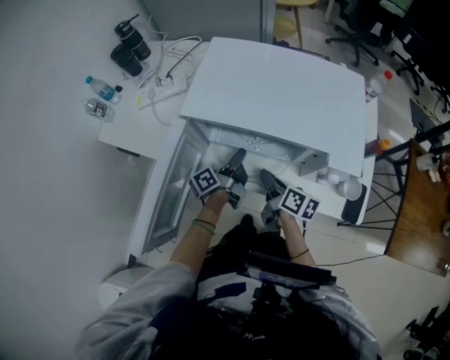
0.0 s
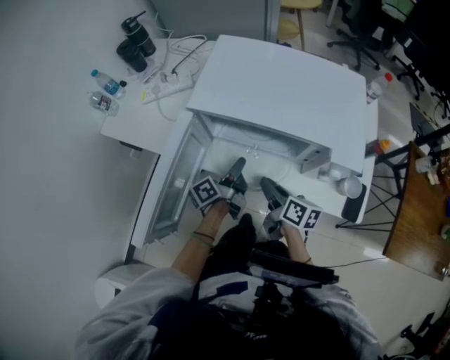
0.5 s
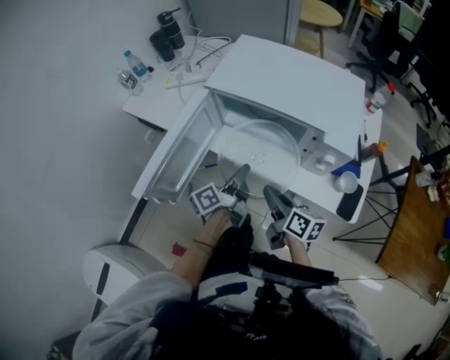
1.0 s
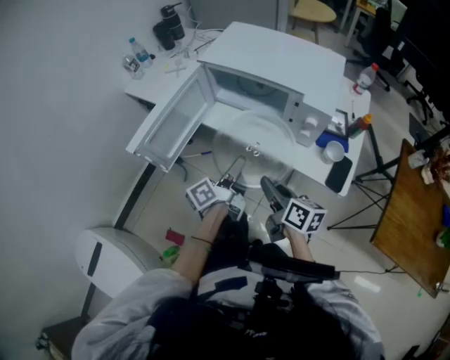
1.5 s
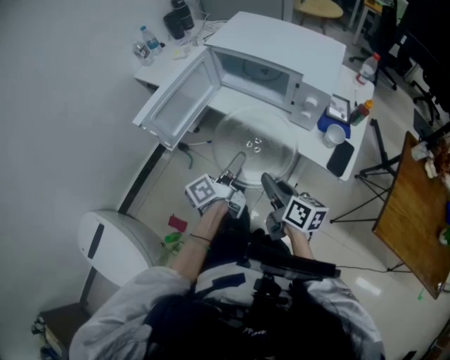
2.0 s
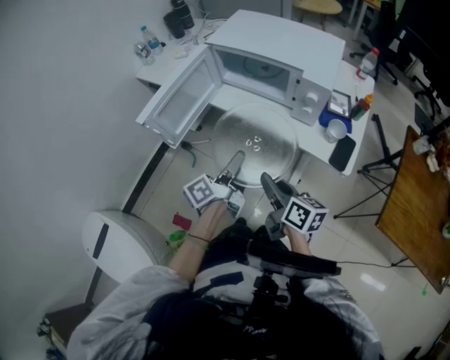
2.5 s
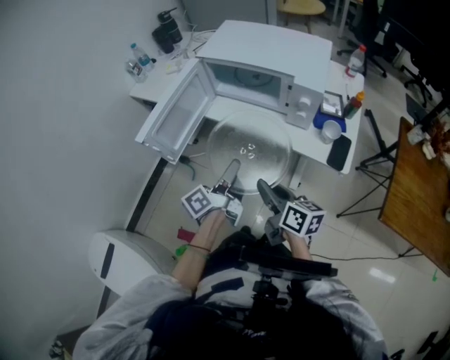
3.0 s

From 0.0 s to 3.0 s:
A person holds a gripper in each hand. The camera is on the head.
From 0.0 s to 1.5 s: Both grippers travel together backward, roughly 25 cm. The right gripper swivels about 20 degrees.
From 1.5 s to 3.0 s: Both grippers move backward, approximately 10 cm.

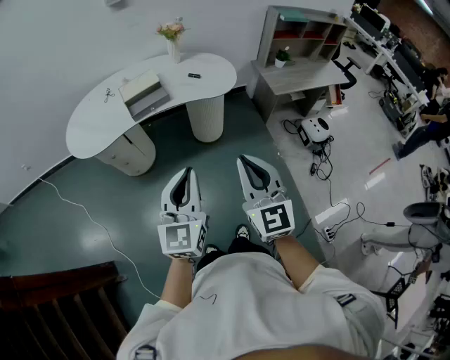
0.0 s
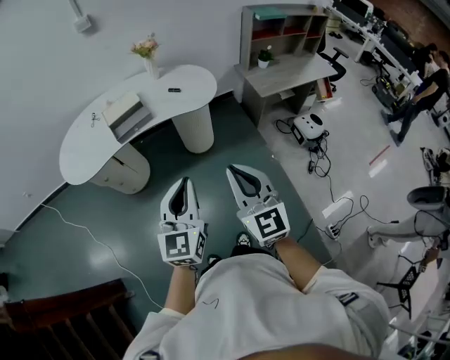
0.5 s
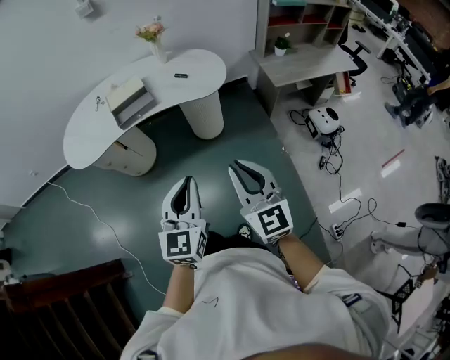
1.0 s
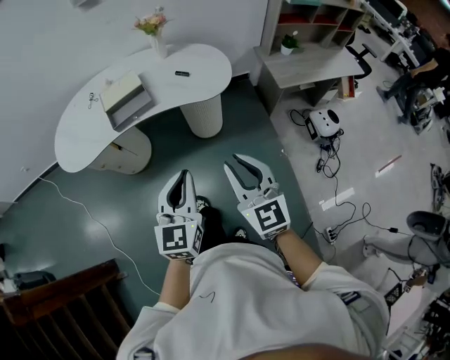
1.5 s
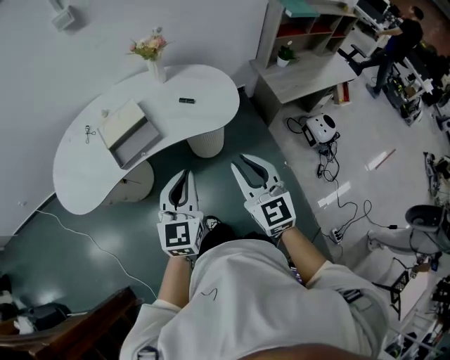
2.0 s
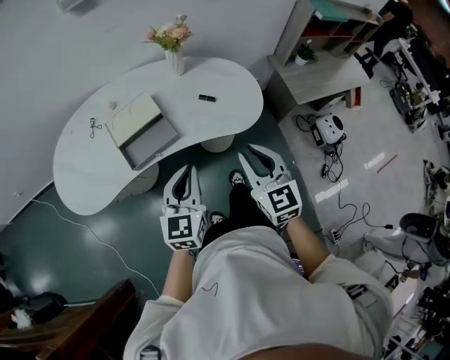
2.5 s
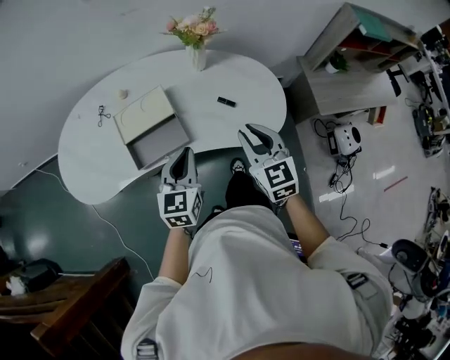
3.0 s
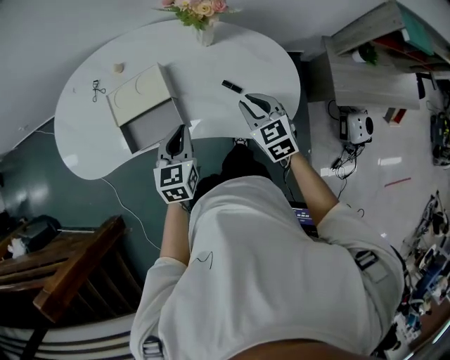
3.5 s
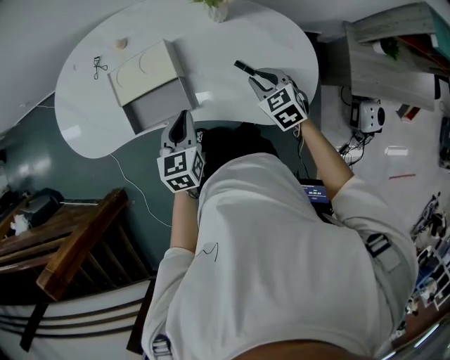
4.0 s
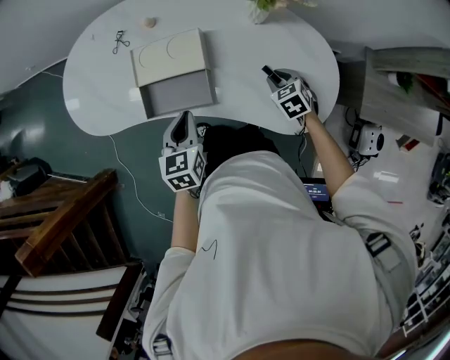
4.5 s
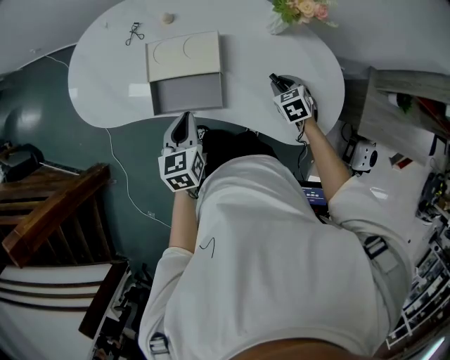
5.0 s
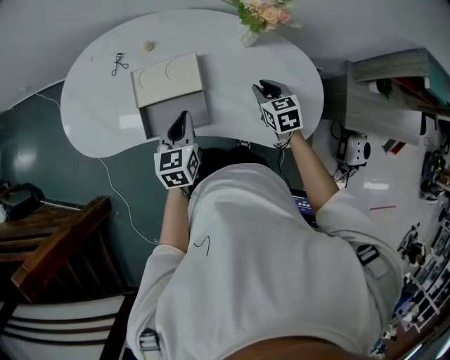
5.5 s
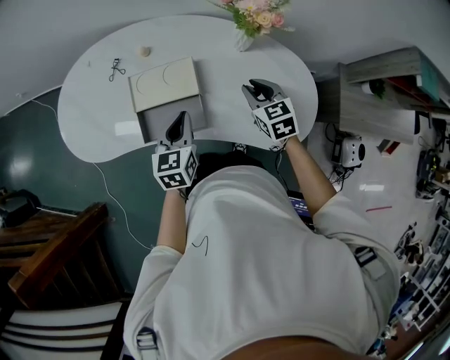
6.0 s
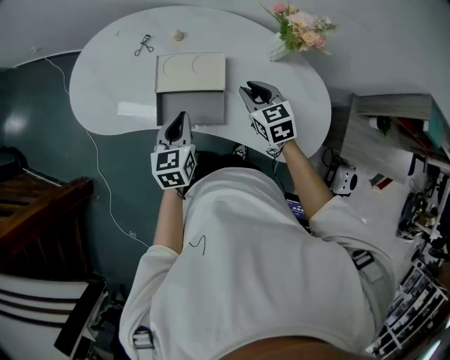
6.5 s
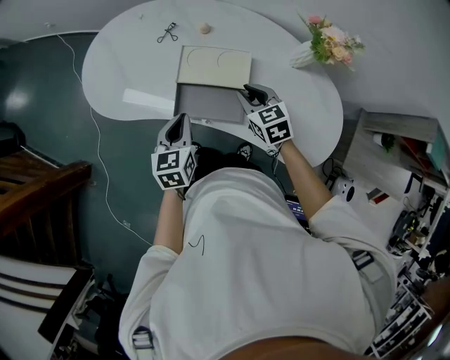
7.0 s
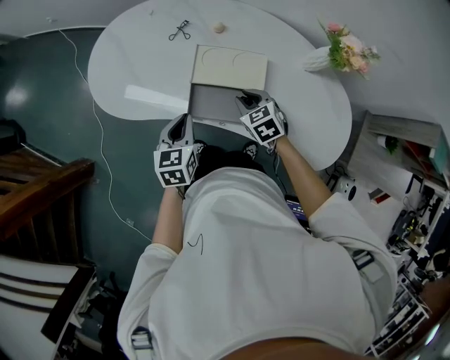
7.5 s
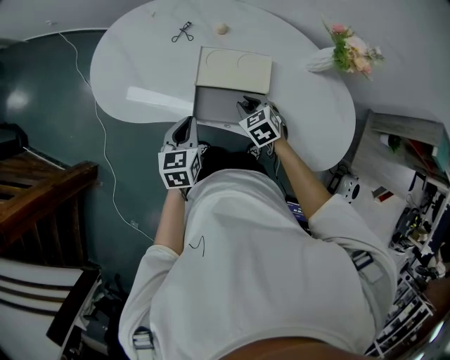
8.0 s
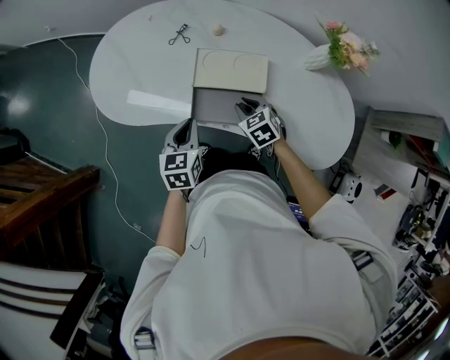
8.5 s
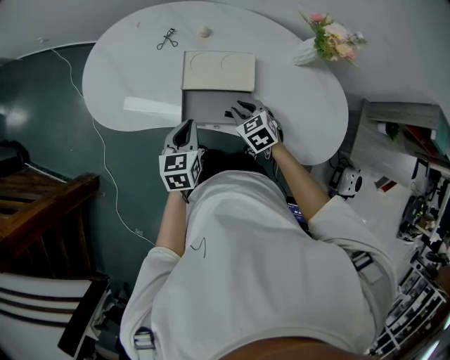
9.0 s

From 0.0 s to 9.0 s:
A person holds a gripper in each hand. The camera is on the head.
From 0.0 s to 2.0 s: Both grippers move forward, about 30 cm.
From 2.0 s to 4.5 s: The left gripper moves roughly 35 cm, and turns by approximately 50 degrees. Meanwhile the right gripper ends up roughly 60 cm from where it was, and angles its fingers downward, by about 50 degrees.
From 4.5 s to 7.0 s: The left gripper travels to the left by about 15 cm. Meanwhile the right gripper moves to the left and upward, approximately 25 cm, and rotates approximately 20 degrees.
From 7.0 s to 9.0 s: The right gripper shifts approximately 5 cm downward.

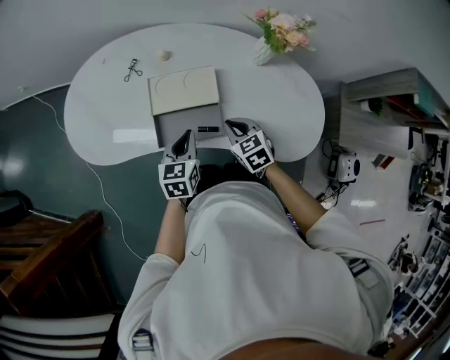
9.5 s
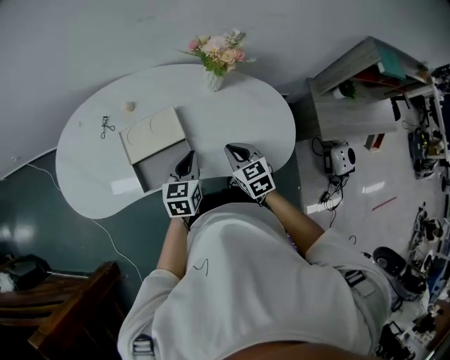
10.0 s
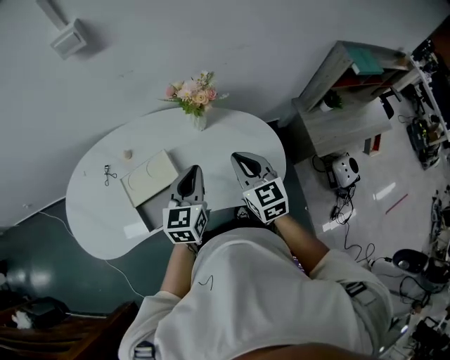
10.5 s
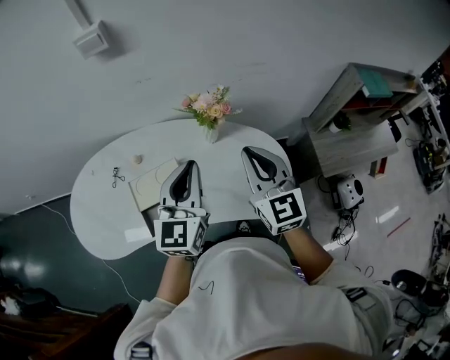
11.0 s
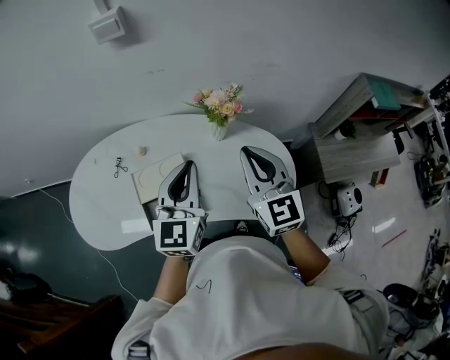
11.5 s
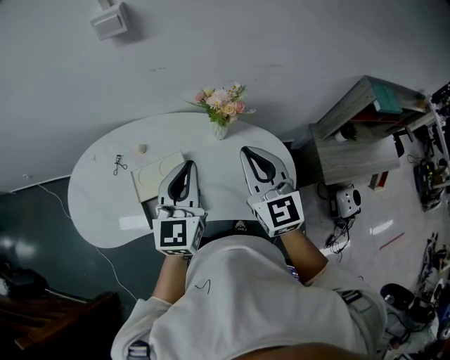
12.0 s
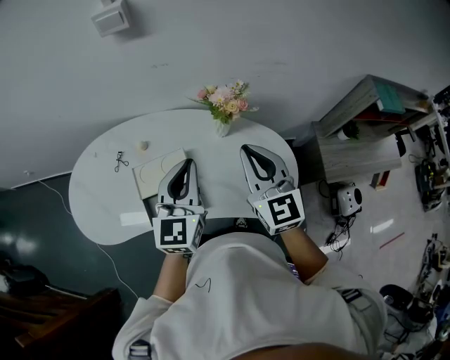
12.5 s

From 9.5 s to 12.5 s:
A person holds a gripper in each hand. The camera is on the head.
From 9.5 s to 11.0 s: Both grippers travel together upward and to the right, some 35 cm. The right gripper tilts its fingers about 40 degrees upward; the left gripper angles its fingers upward, by some 30 degrees.
From 11.0 s to 12.5 s: The grippers move only a little.

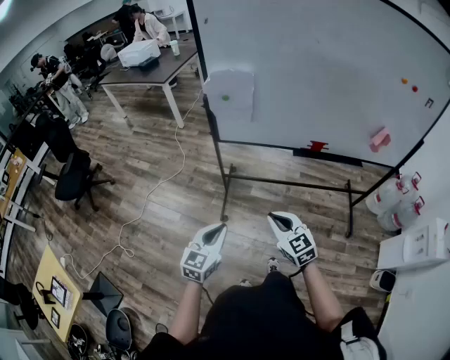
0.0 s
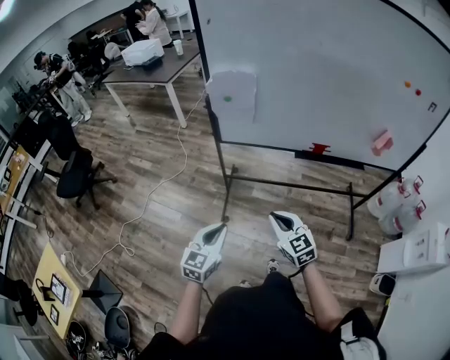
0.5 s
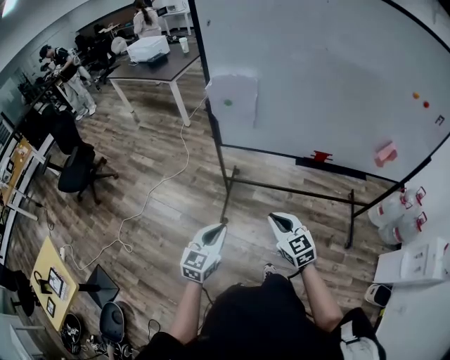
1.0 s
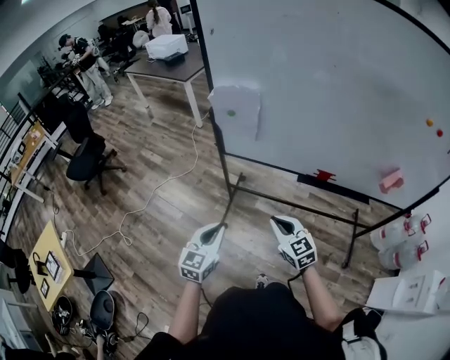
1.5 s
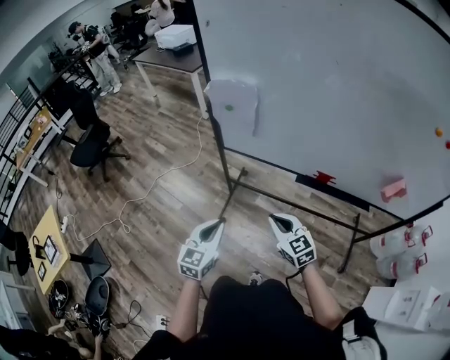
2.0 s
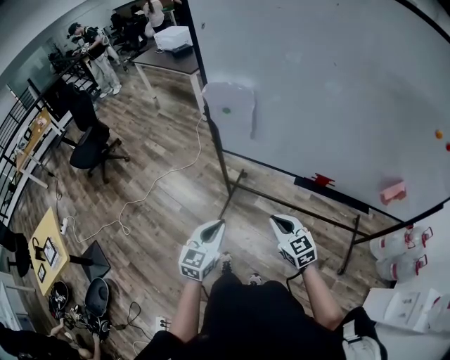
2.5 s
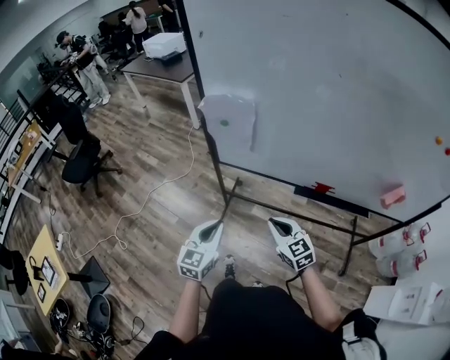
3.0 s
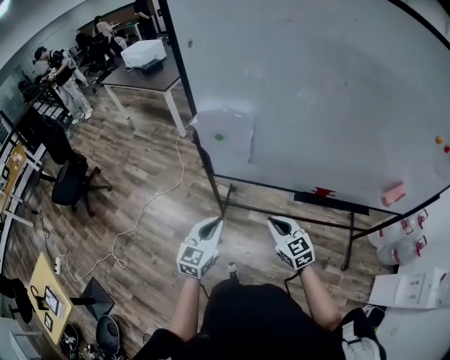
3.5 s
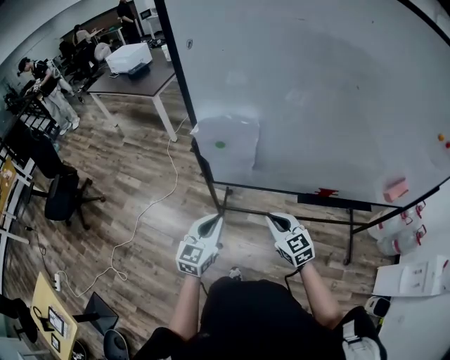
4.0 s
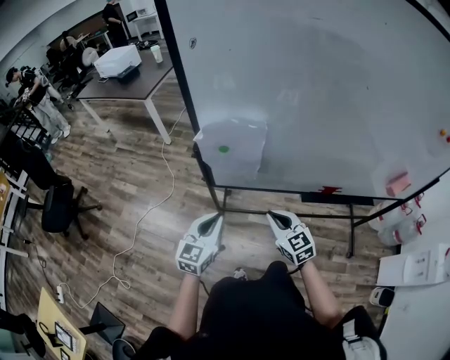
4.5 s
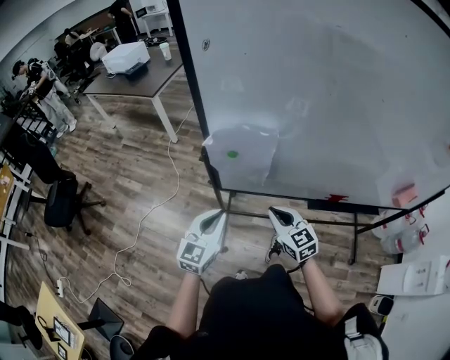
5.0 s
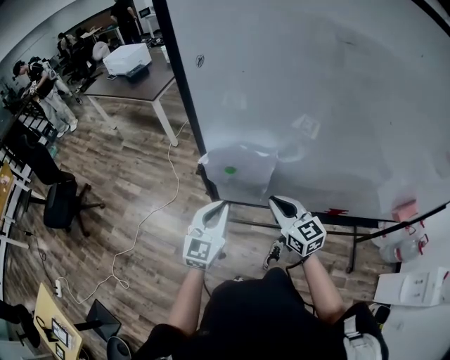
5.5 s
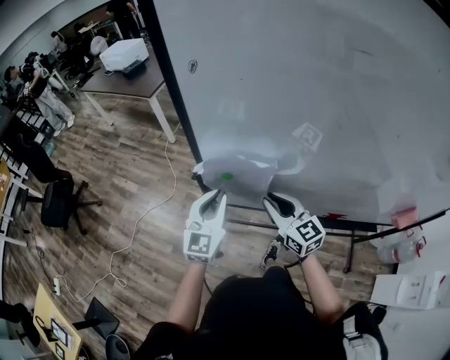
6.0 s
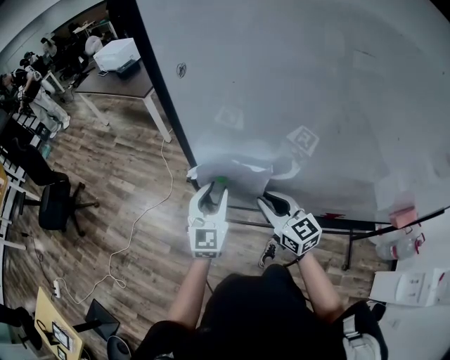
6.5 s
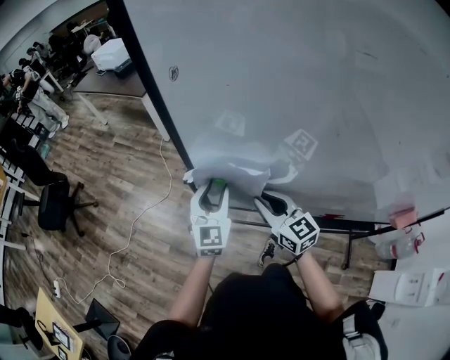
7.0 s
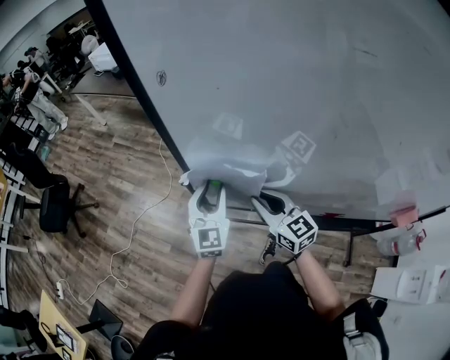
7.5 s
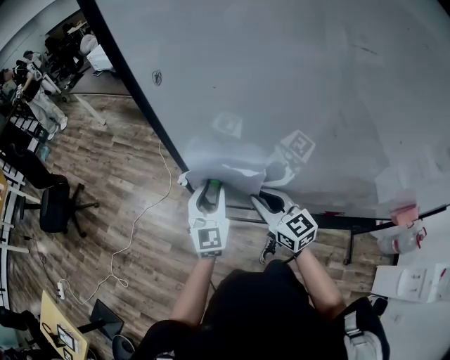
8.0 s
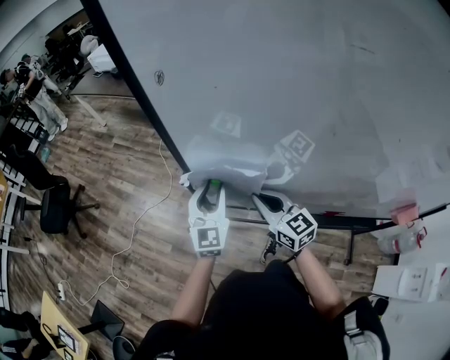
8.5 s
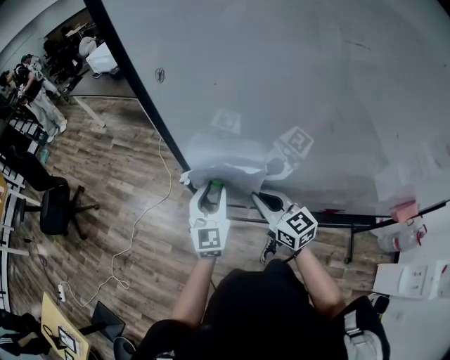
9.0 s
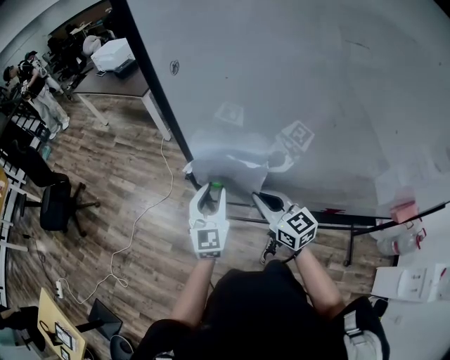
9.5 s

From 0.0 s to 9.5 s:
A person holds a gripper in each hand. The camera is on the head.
From 0.0 s to 2.0 s: The two grippers go some 15 cm to the right and forward.
From 2.0 s to 4.0 s: The two grippers go some 20 cm forward.
From 4.0 s to 5.5 s: The left gripper travels forward by some 15 cm; the right gripper moves forward and upward, about 15 cm.
From 5.5 s to 7.5 s: The right gripper shifts roughly 5 cm forward. The left gripper travels forward by roughly 10 cm, and opens up.
From 7.5 s to 9.5 s: The grippers stay close to where they were, moving slightly.

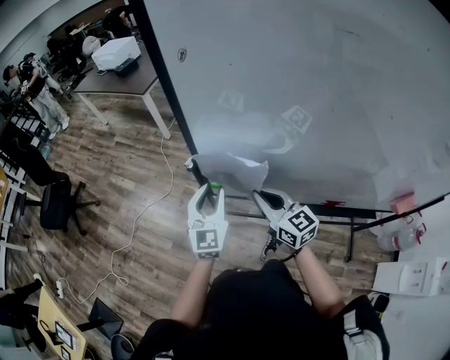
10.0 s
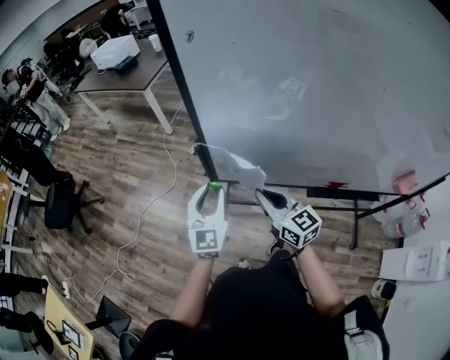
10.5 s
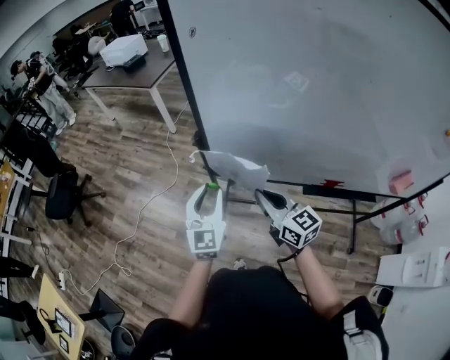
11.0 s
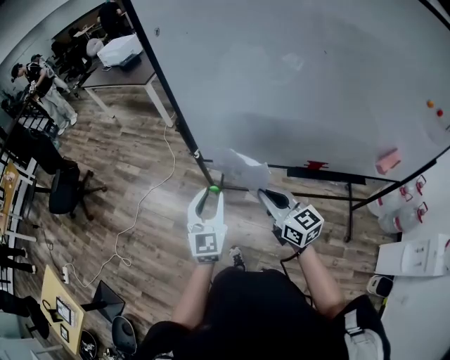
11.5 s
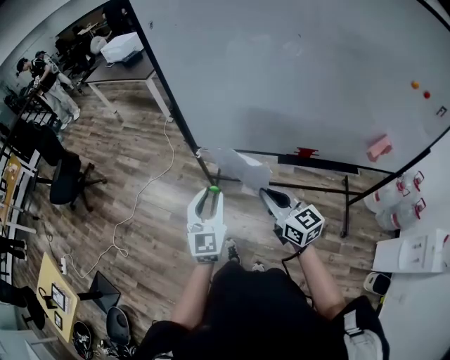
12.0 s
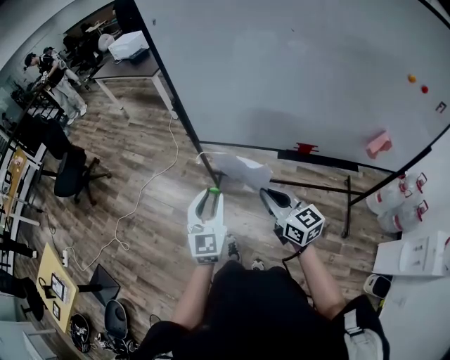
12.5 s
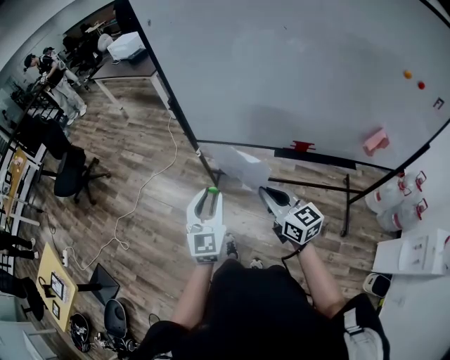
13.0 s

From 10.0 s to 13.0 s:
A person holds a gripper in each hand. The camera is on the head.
From 10.0 s to 11.5 s: The grippers both shift backward by approximately 20 cm.
From 11.5 s to 13.0 s: The grippers both shift backward by approximately 15 cm.
